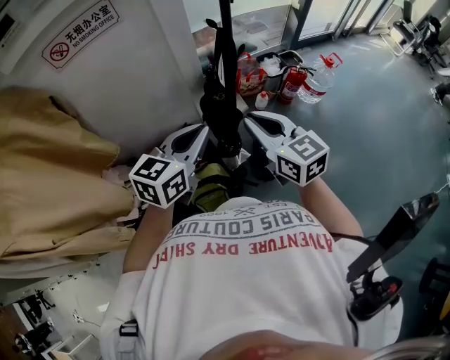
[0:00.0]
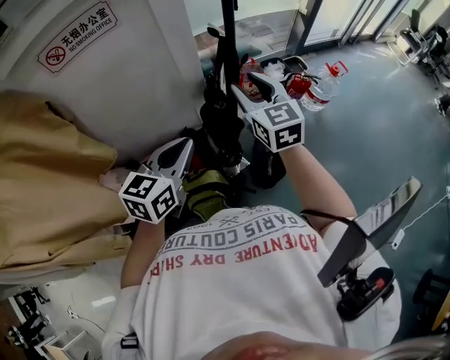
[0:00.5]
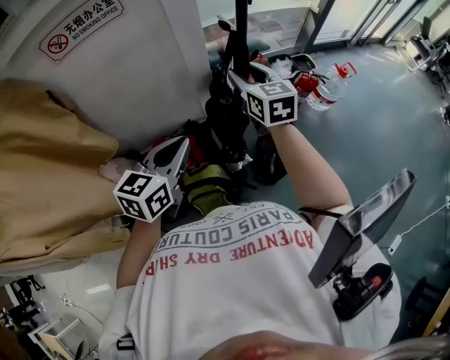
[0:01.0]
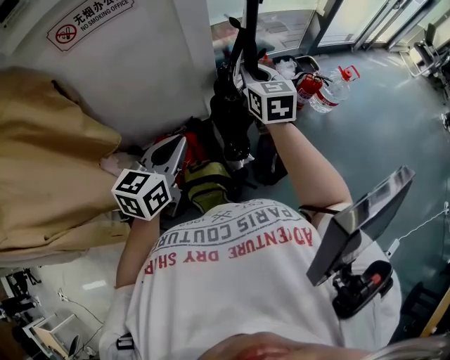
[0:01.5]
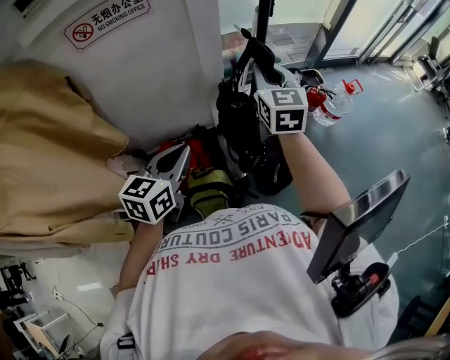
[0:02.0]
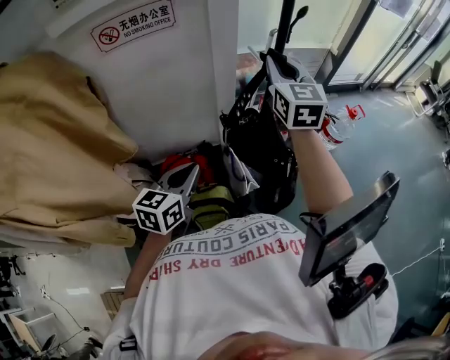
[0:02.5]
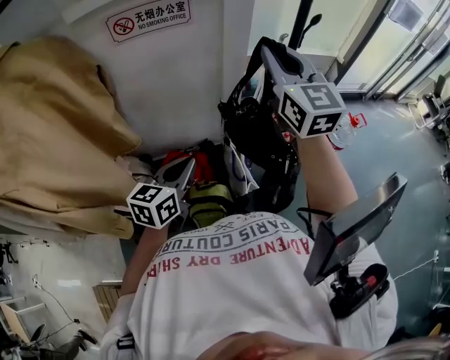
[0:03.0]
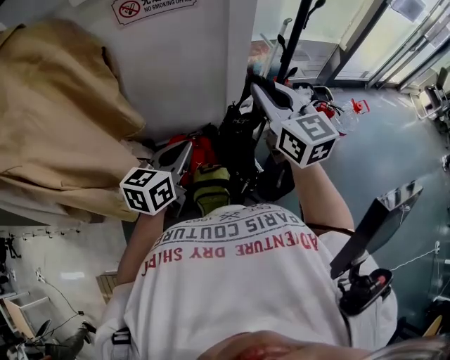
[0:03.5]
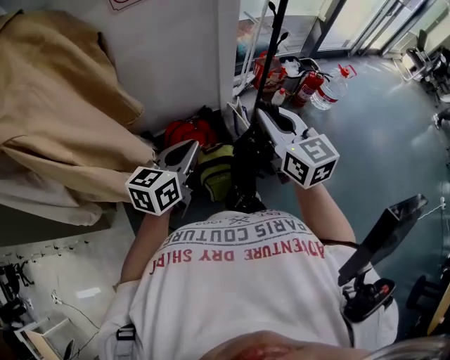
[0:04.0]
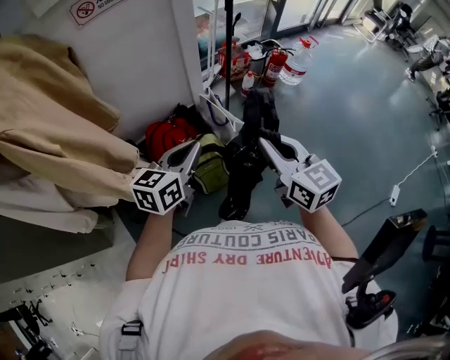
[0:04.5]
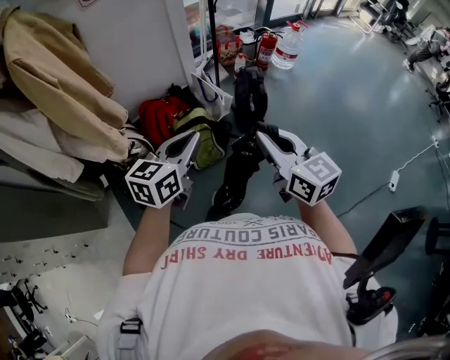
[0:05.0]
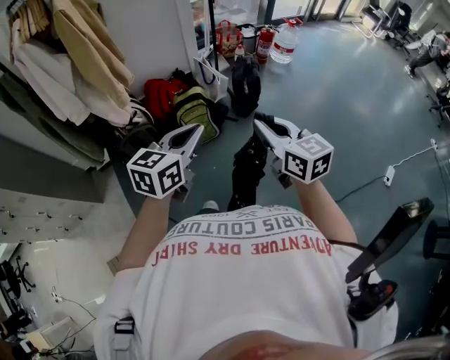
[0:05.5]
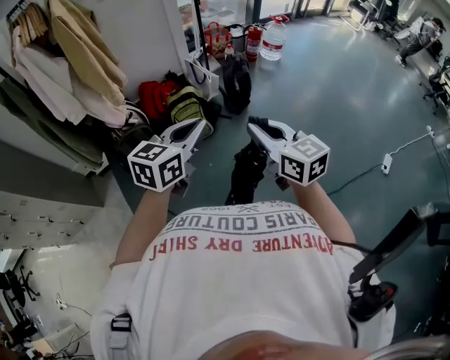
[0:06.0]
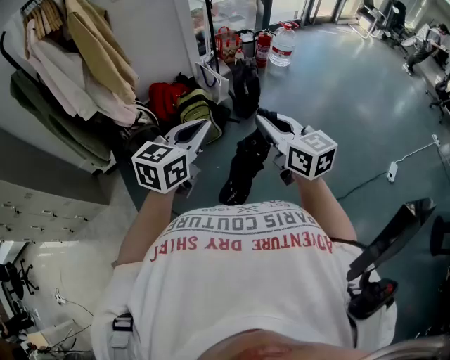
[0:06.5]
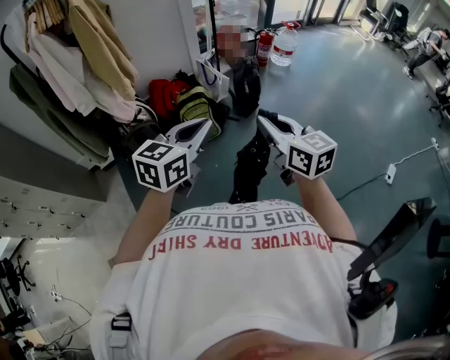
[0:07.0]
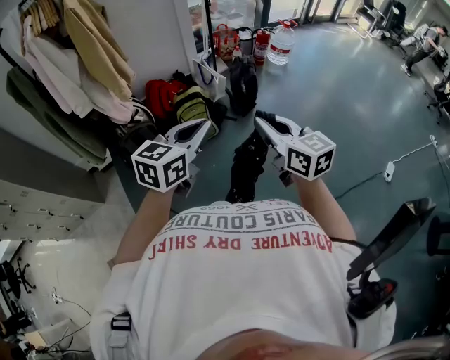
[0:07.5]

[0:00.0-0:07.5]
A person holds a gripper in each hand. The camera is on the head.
0:00.0 to 0:02.0: The right gripper travels forward by approximately 20 cm, changes its angle by approximately 20 degrees, and opens, then closes once more, while the left gripper goes roughly 10 cm to the left.
0:02.0 to 0:04.0: The right gripper travels backward by some 30 cm; the left gripper shifts approximately 15 cm backward and to the left.
0:04.0 to 0:05.5: Both grippers are carried backward, about 50 cm.
0:05.5 to 0:07.5: Both grippers travel together backward, some 5 cm.

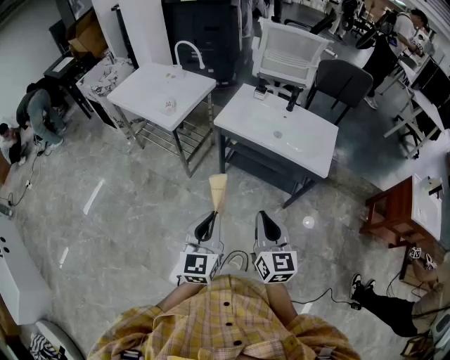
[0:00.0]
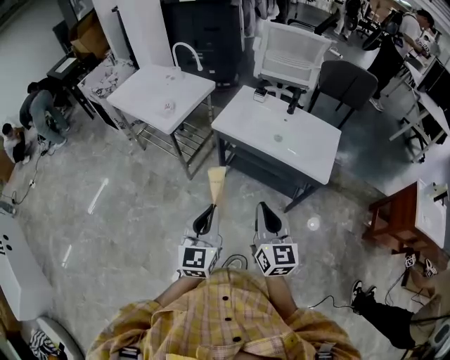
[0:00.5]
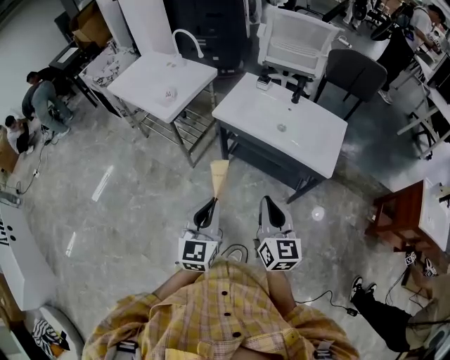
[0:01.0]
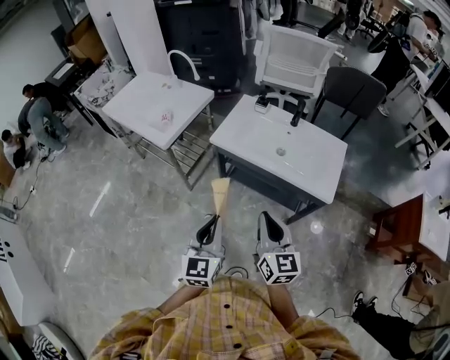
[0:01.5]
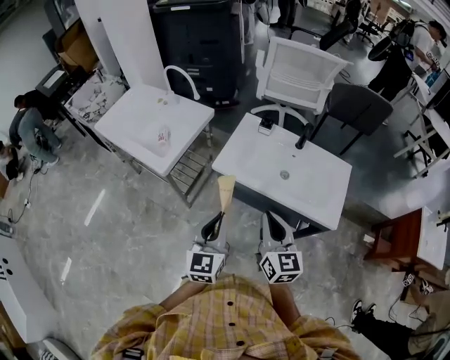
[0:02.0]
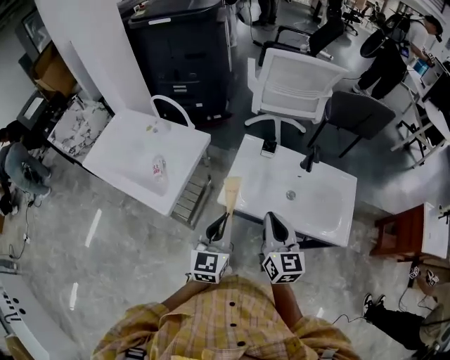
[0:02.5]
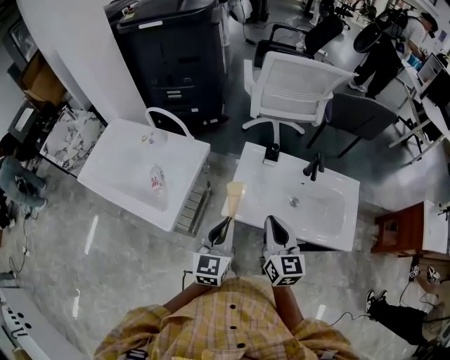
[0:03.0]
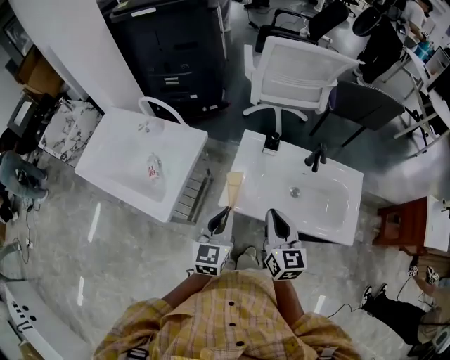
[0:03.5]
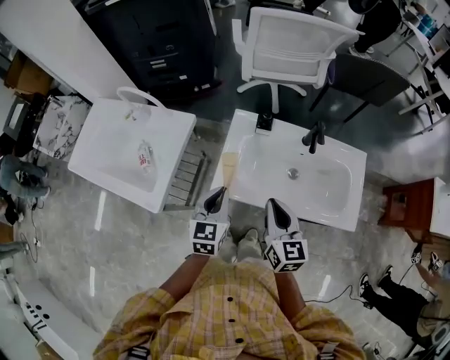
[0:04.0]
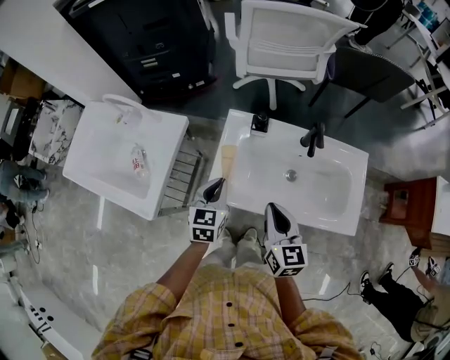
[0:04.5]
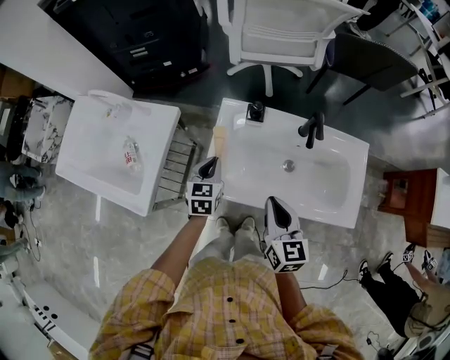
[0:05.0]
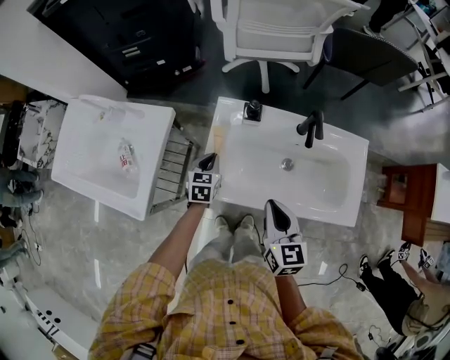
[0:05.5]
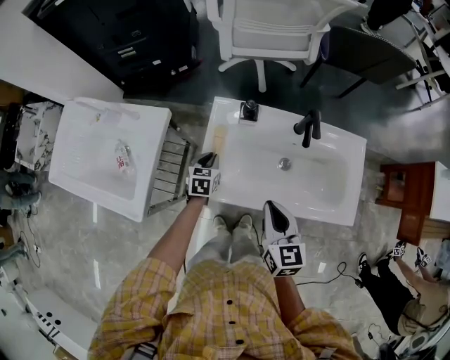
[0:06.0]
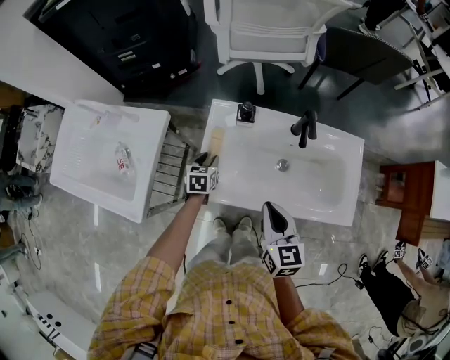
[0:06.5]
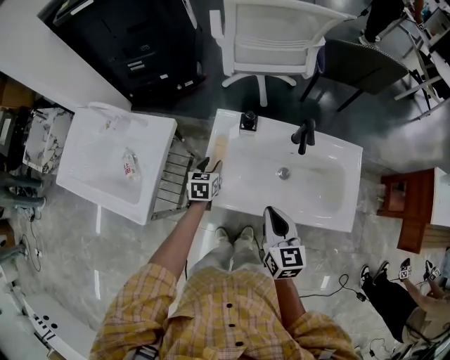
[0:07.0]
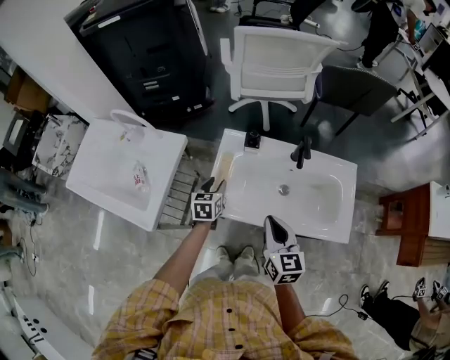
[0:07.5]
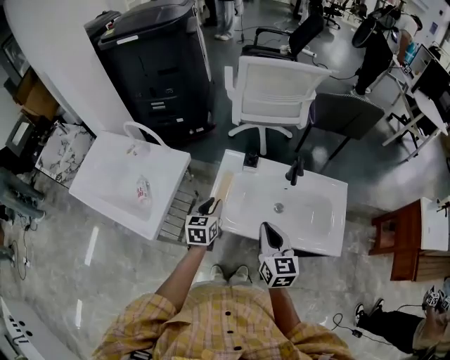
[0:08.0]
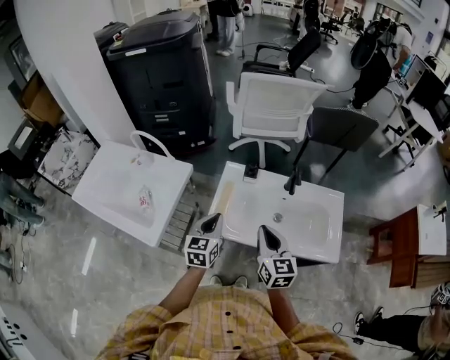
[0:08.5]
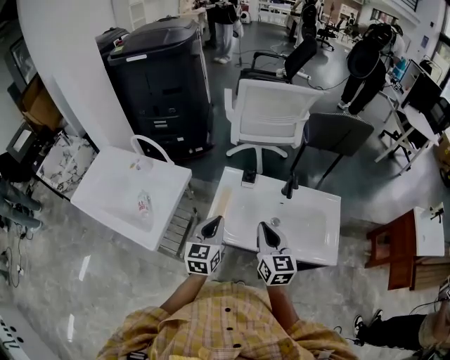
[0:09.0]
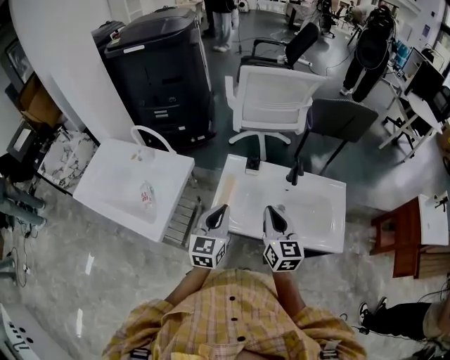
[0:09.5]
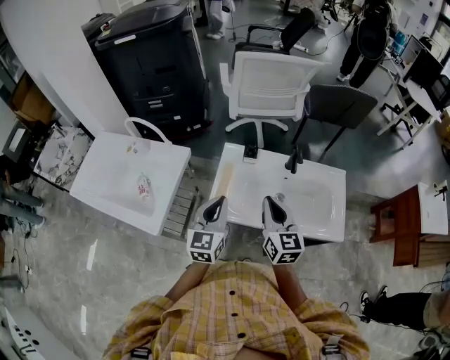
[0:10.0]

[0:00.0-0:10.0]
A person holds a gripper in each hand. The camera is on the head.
0:00.0 to 0:02.0: Both grippers move forward, some 30 cm.
0:02.0 to 0:04.0: Both grippers travel together forward, approximately 25 cm. The left gripper rotates roughly 20 degrees.
0:04.0 to 0:06.0: The left gripper goes about 25 cm downward and forward, and swivels roughly 20 degrees. The right gripper moves downward, some 5 cm.
0:06.0 to 0:08.0: The right gripper goes some 5 cm upward. The left gripper heads upward and backward, covering some 20 cm.
0:08.0 to 0:10.0: The left gripper goes roughly 15 cm upward and backward, rotates approximately 20 degrees, and closes.

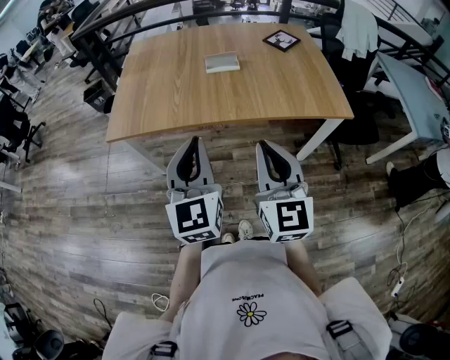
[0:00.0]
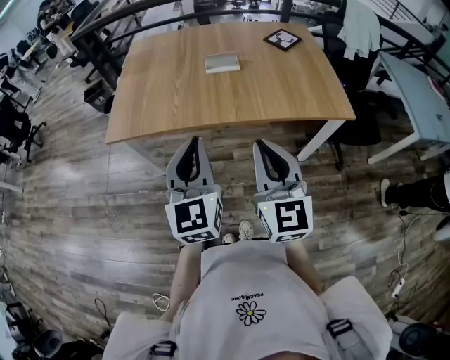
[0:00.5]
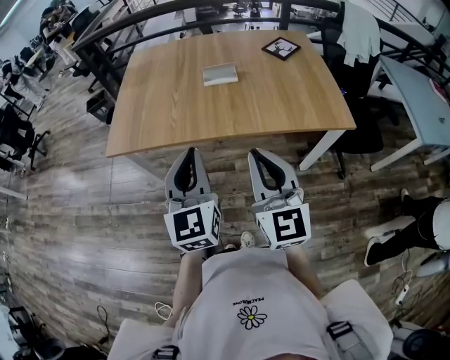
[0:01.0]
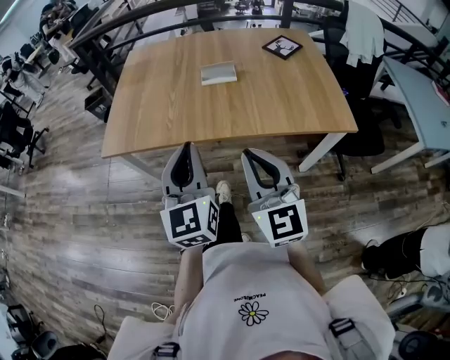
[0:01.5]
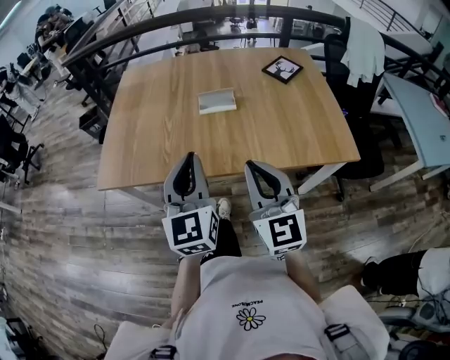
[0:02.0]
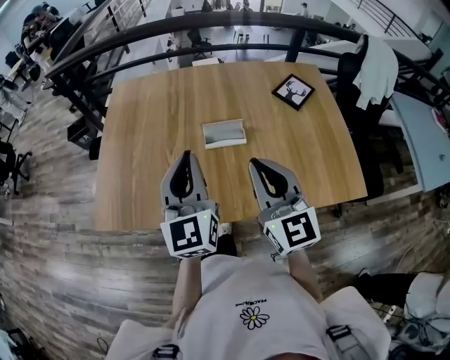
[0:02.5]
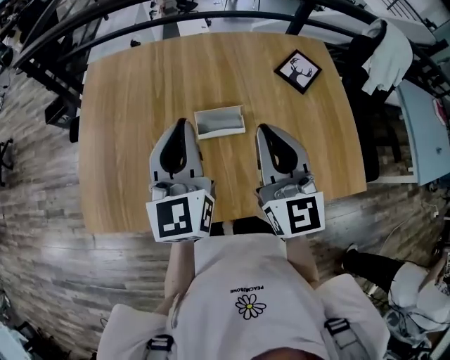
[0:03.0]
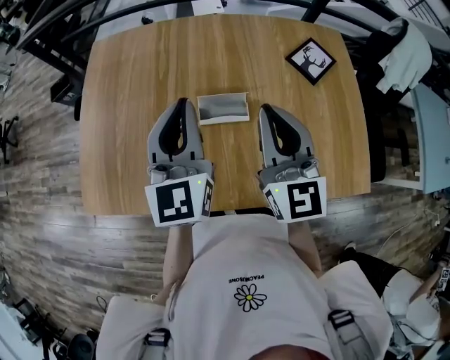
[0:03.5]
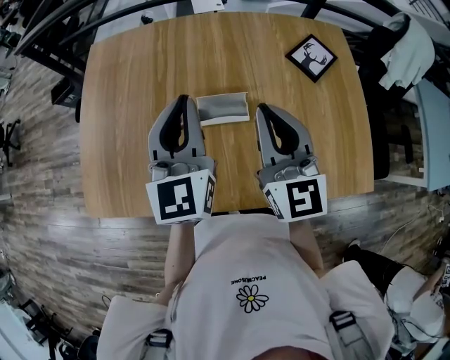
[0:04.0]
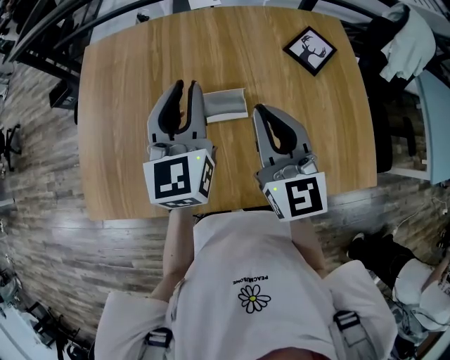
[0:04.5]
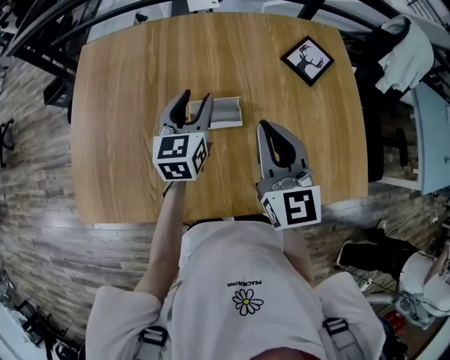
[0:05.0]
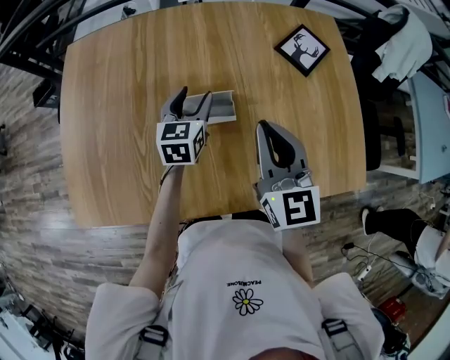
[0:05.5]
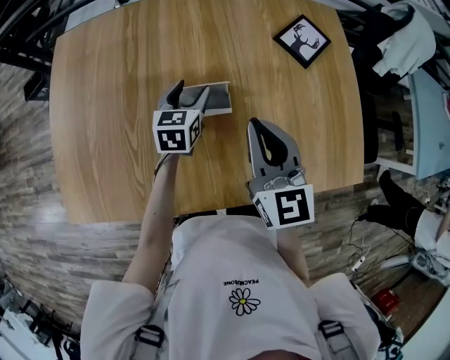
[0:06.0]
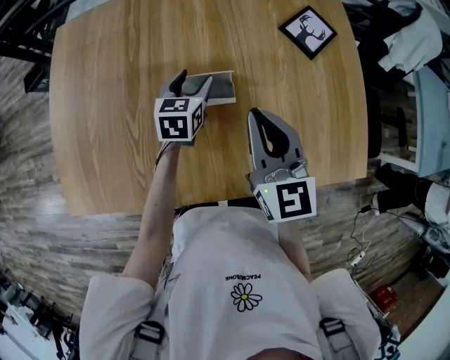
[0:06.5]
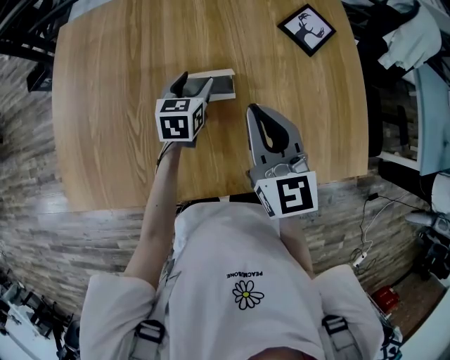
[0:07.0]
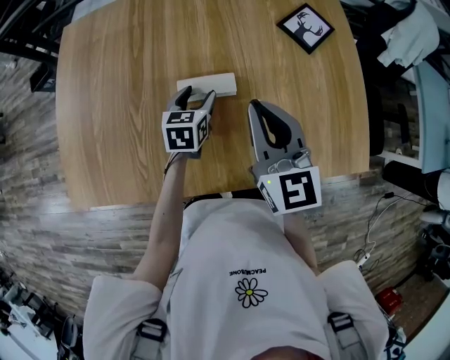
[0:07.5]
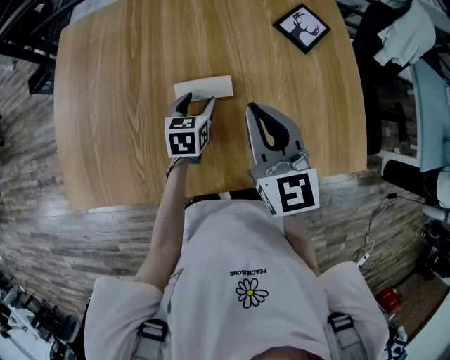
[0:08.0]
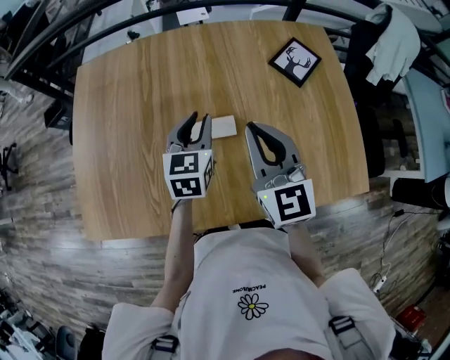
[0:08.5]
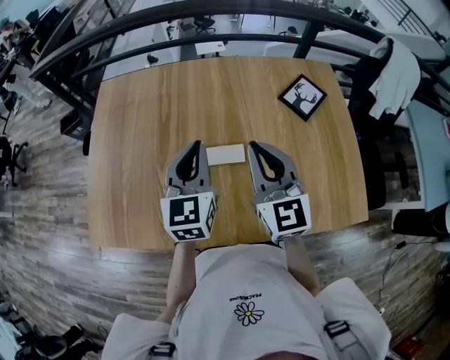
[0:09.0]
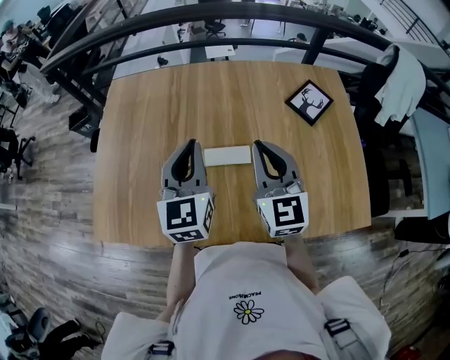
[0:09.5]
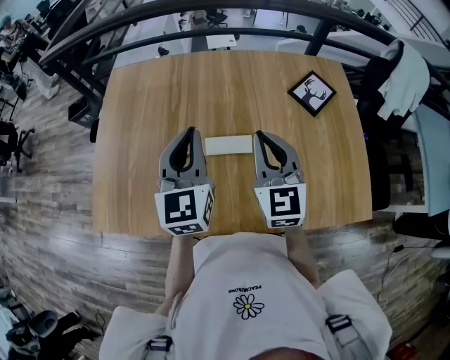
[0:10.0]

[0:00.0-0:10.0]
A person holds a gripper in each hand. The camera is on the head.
0:00.0 to 0:02.0: Both grippers travel together forward, some 15 cm.
0:02.0 to 0:04.0: The grippers both shift forward by some 35 cm.
0:04.0 to 0:06.0: The left gripper heads downward and forward, covering about 25 cm, rotates some 40 degrees, and opens up. Meanwhile the right gripper moves downward, roughly 10 cm.
0:06.0 to 0:08.0: The left gripper shifts some 10 cm backward.
0:08.0 to 0:10.0: The left gripper is displaced upward by some 25 cm, tilts its fingers roughly 30 degrees upward, and closes.
